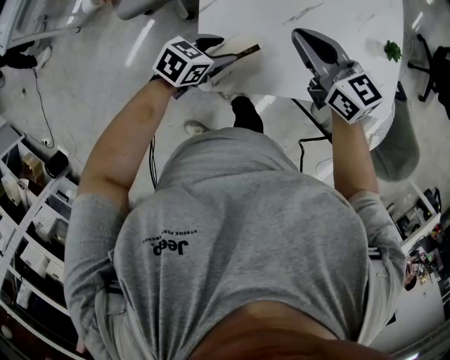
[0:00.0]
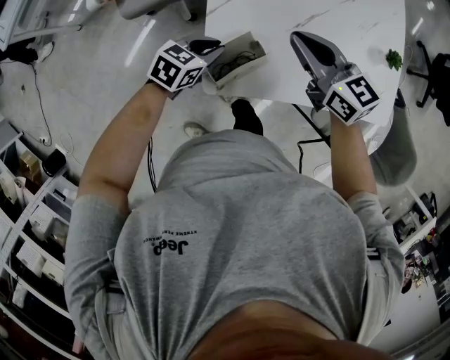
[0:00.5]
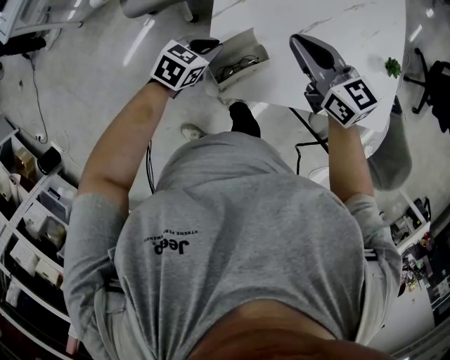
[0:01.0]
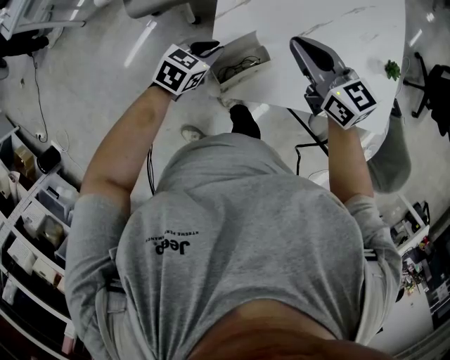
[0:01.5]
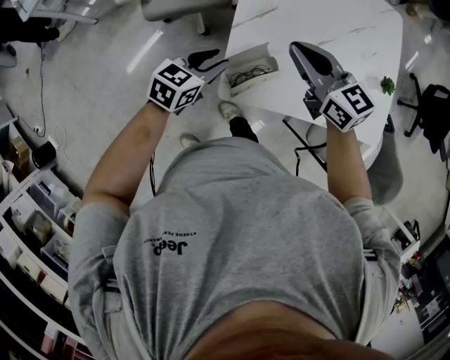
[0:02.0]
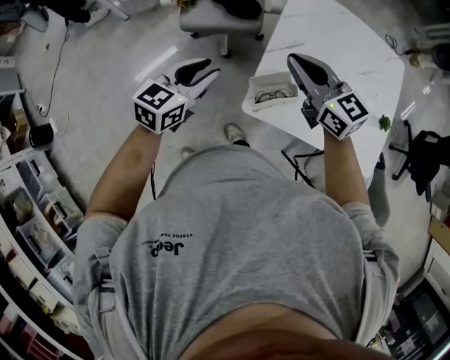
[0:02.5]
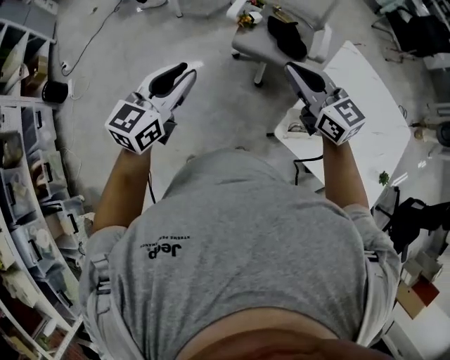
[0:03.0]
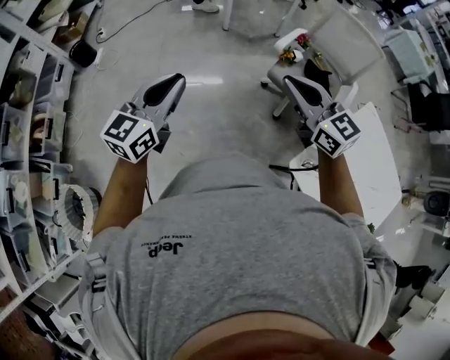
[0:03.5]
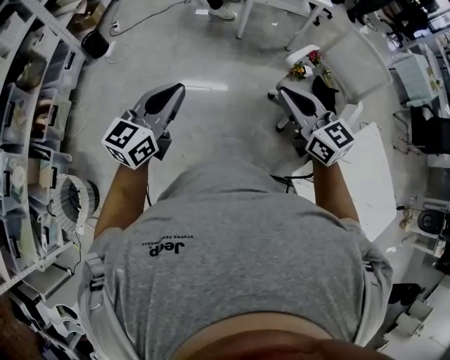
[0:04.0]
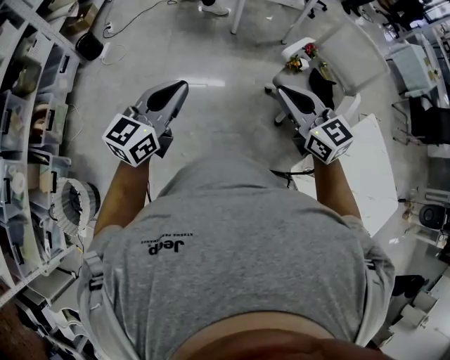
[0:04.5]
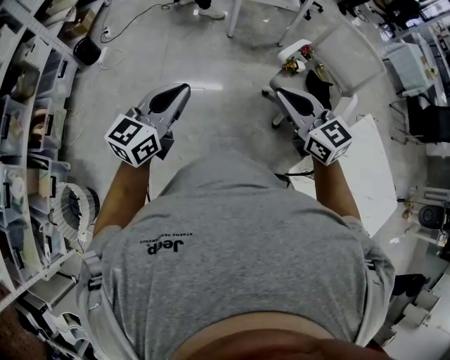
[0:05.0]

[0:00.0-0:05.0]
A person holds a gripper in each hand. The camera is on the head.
0:00.0 to 0:02.5: The right gripper shifts by roughly 20 cm, and turns by about 20 degrees. The left gripper ends up some 30 cm from where it was, and rotates roughly 40 degrees.
0:02.5 to 0:05.0: The left gripper changes place by roughly 40 cm, and rotates some 50 degrees. Meanwhile the right gripper moves roughly 40 cm, and turns by some 40 degrees.

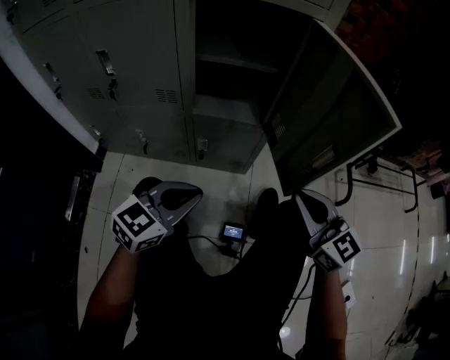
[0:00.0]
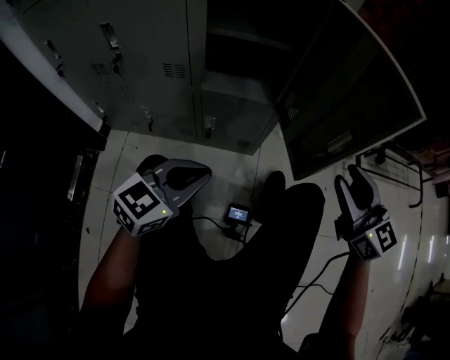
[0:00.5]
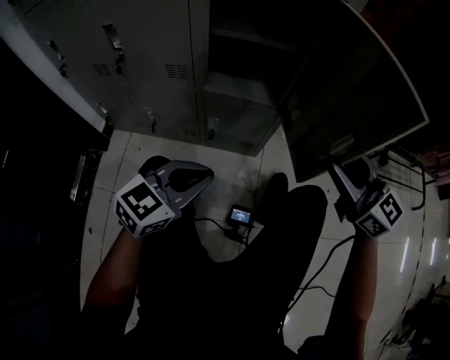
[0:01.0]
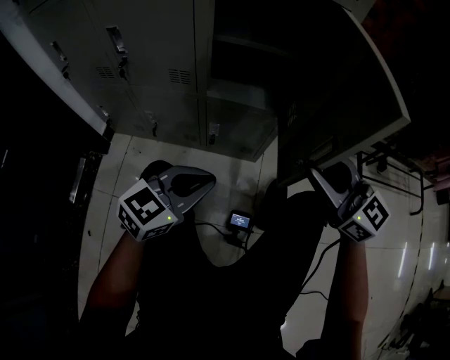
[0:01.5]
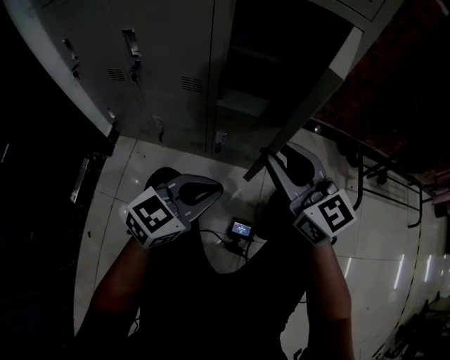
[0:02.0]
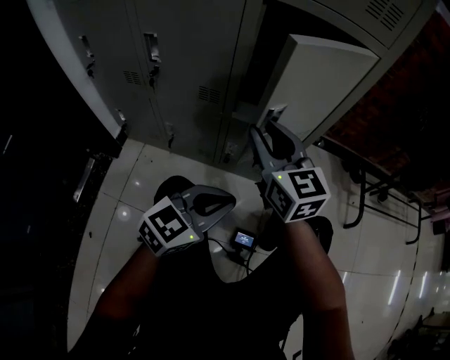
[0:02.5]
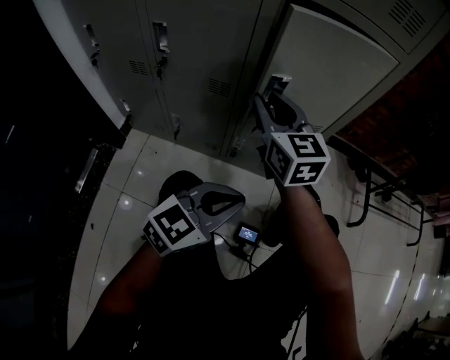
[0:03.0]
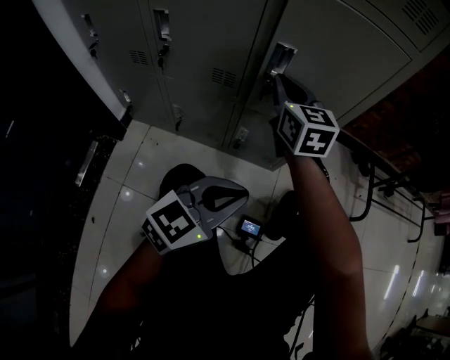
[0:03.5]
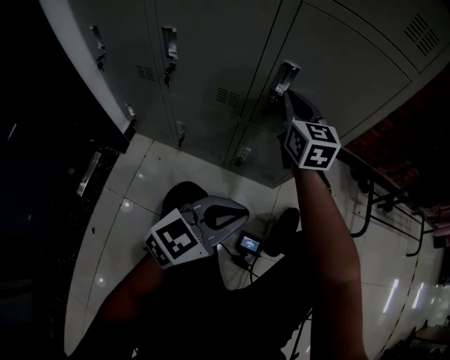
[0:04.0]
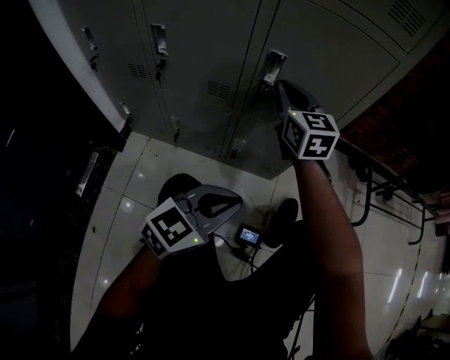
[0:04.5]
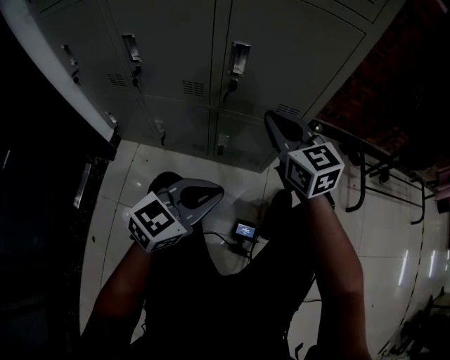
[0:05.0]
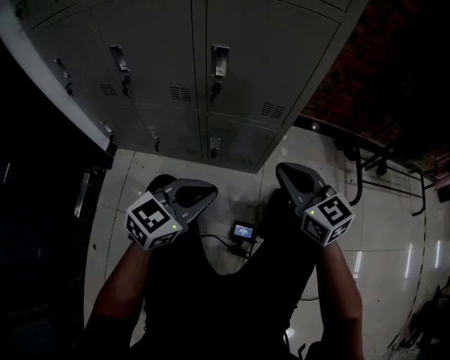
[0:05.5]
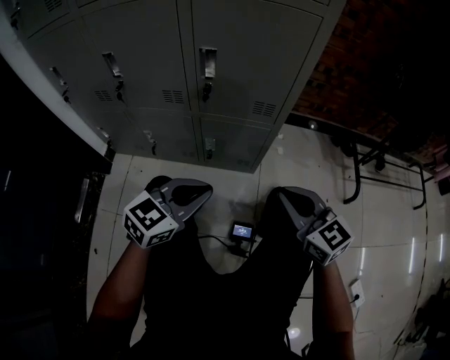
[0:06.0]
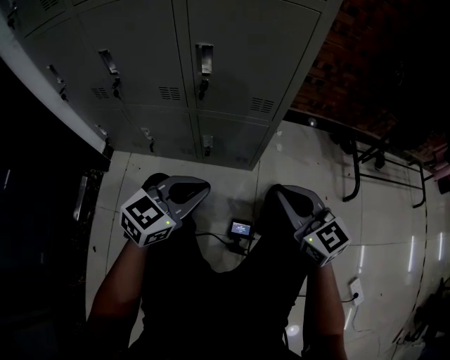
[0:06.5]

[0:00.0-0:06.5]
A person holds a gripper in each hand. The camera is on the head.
0:00.0 to 0:02.0: The right gripper is displaced to the left and forward by roughly 15 cm, and opens.
0:02.0 to 0:04.5: The right gripper shifts roughly 20 cm forward and to the left, and closes up.
0:04.5 to 0:06.5: The right gripper moves backward and to the right, some 30 cm.

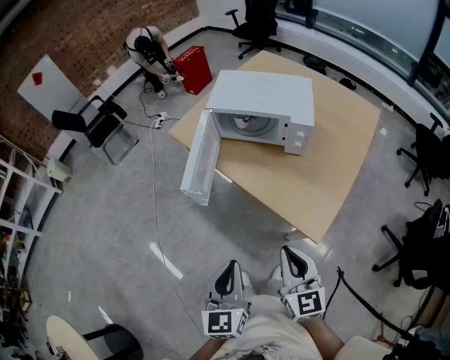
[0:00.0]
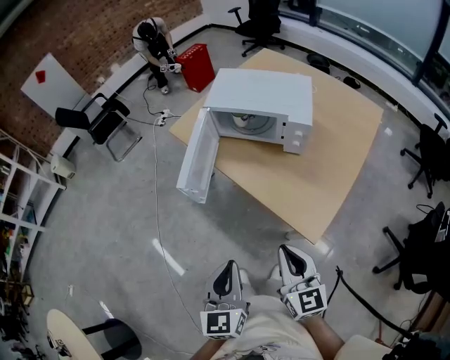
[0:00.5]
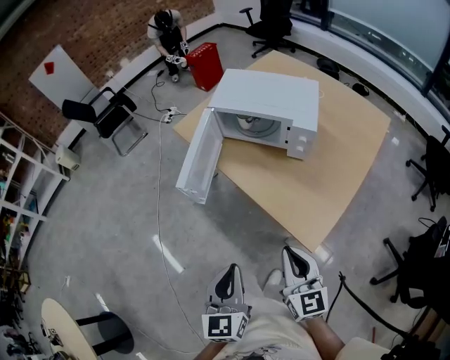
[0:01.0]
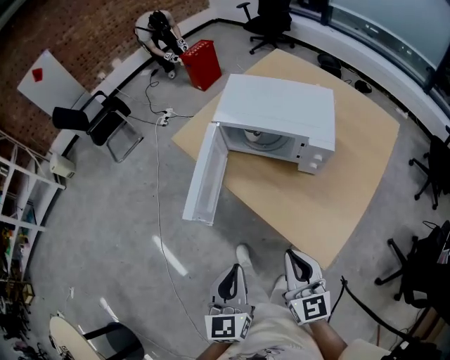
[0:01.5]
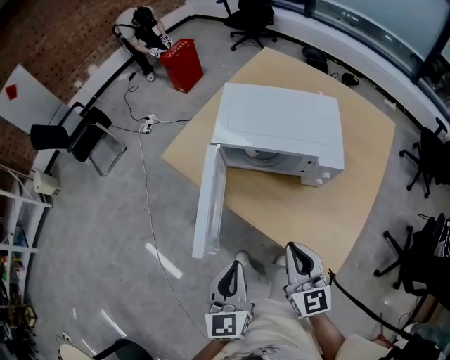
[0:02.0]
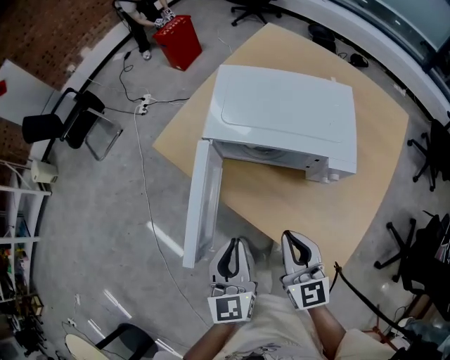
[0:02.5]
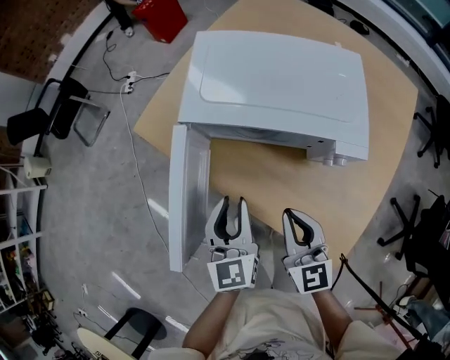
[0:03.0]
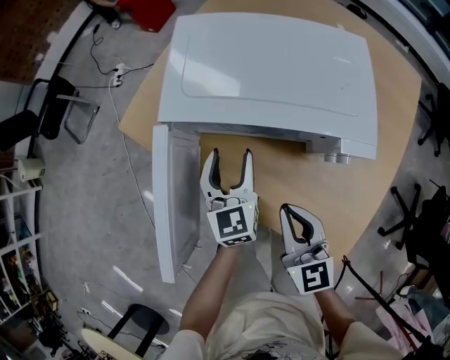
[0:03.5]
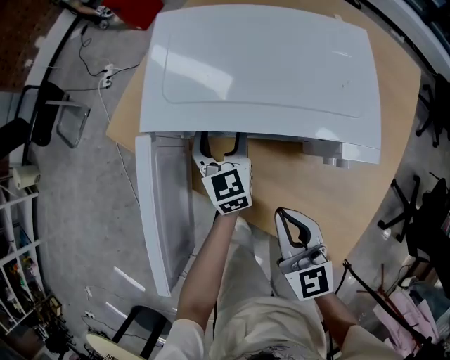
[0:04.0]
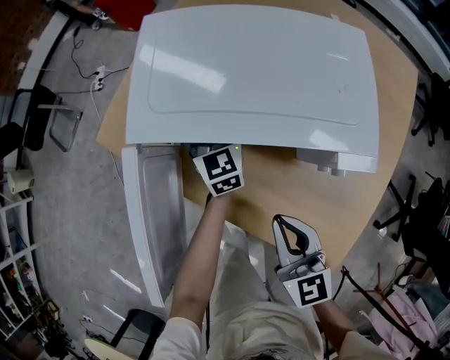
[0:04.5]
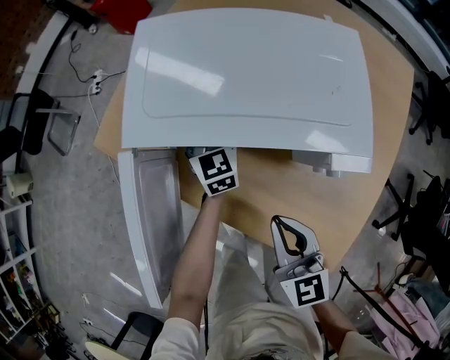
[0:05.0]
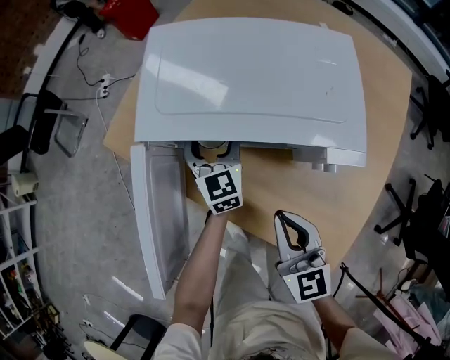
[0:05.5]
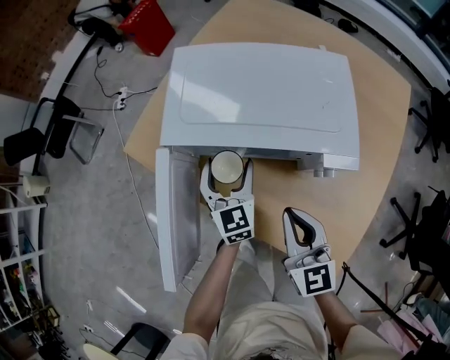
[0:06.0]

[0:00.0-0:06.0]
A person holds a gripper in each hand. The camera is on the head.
0:00.0 to 0:02.0: Both grippers move forward, roughly 25 cm.
0:02.0 to 0:04.0: The left gripper goes roughly 40 cm forward and downward, and opens up, while the right gripper travels forward and downward by some 20 cm.
0:04.0 to 0:06.0: The left gripper is displaced backward by approximately 5 cm, while the right gripper ends up about 5 cm from where it was.

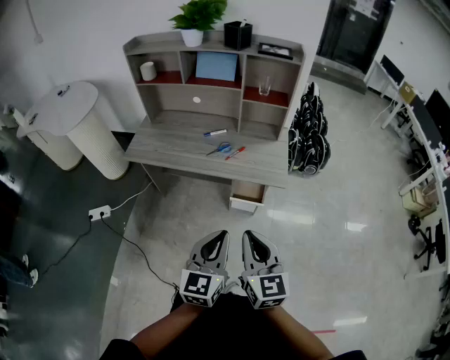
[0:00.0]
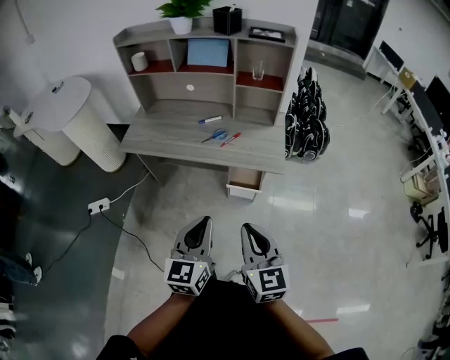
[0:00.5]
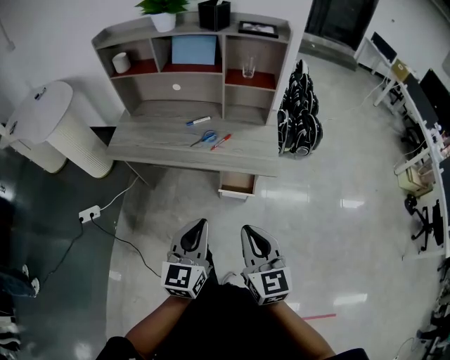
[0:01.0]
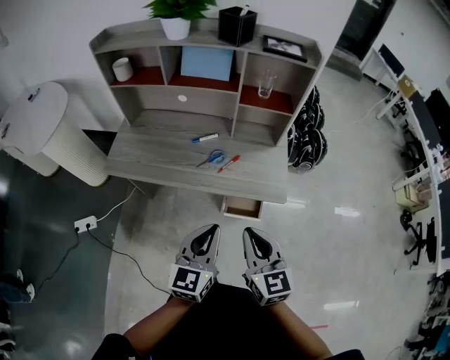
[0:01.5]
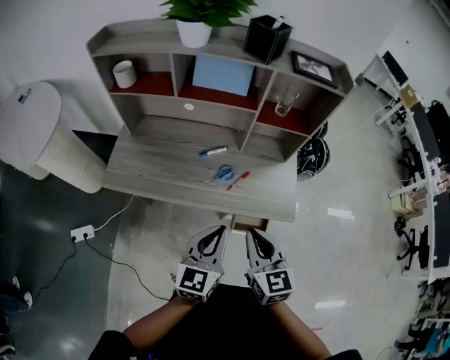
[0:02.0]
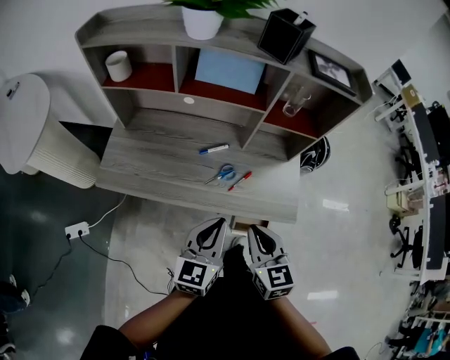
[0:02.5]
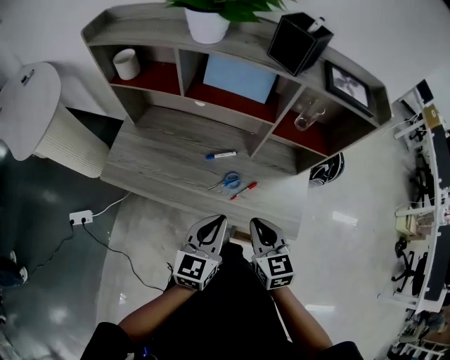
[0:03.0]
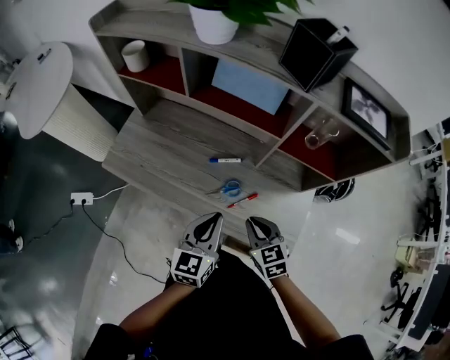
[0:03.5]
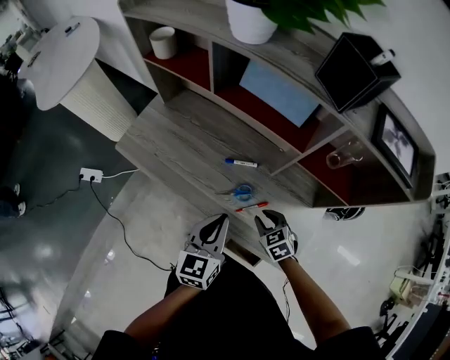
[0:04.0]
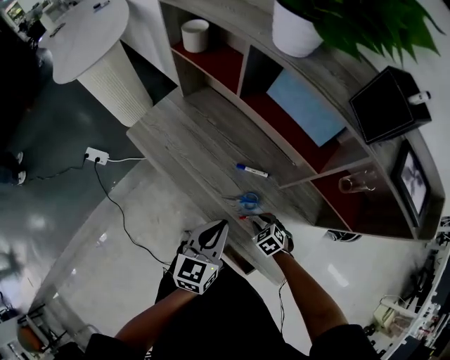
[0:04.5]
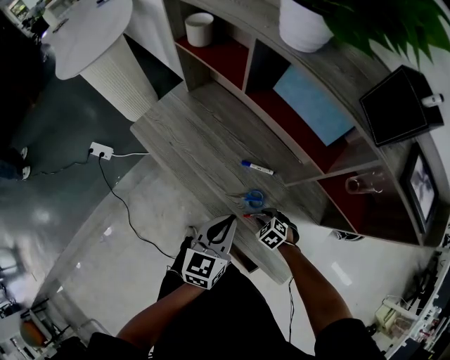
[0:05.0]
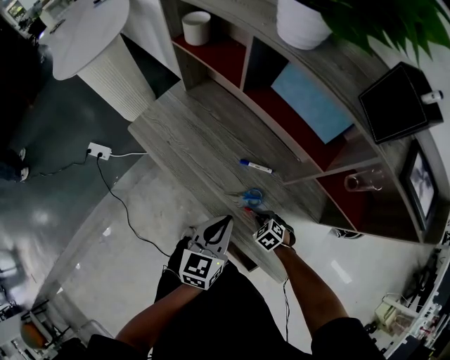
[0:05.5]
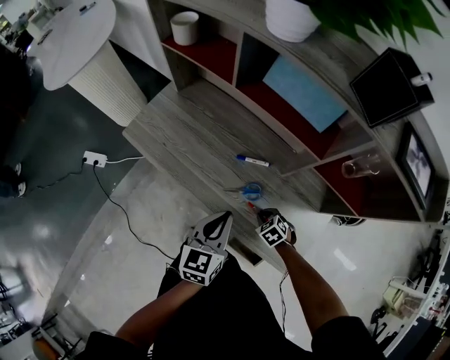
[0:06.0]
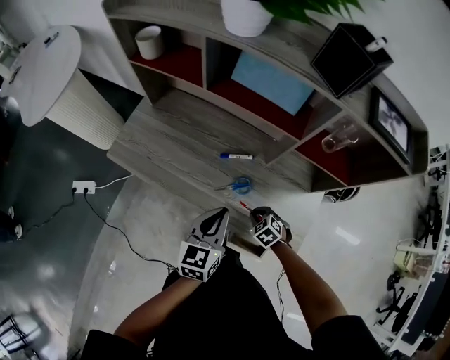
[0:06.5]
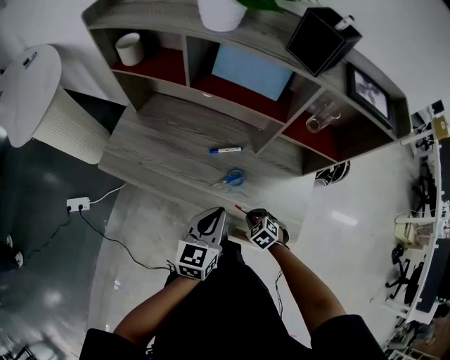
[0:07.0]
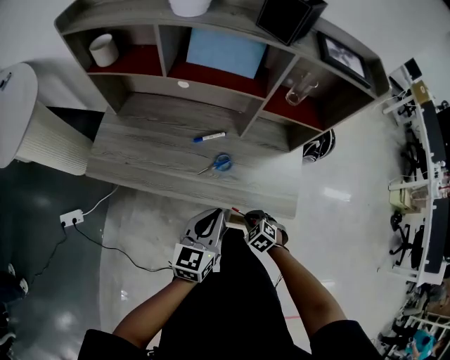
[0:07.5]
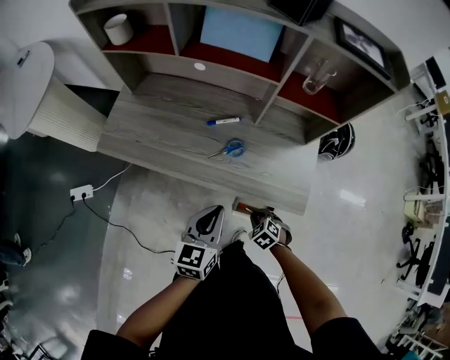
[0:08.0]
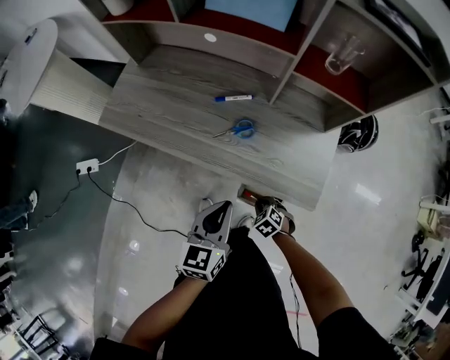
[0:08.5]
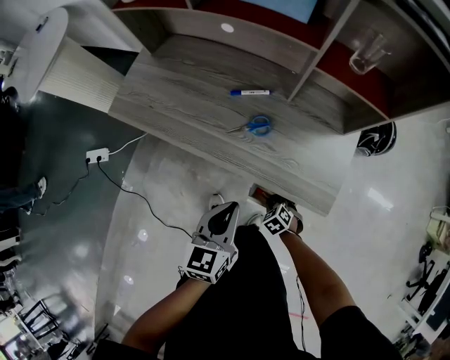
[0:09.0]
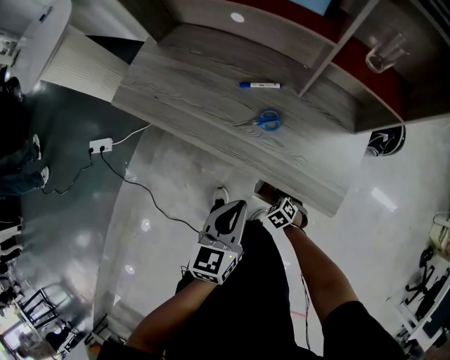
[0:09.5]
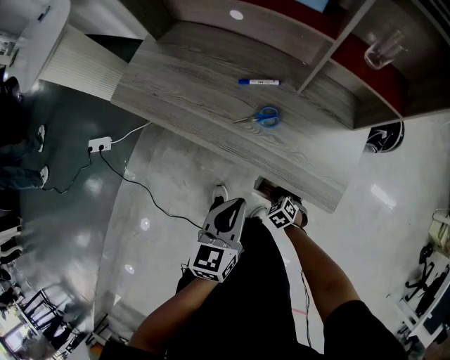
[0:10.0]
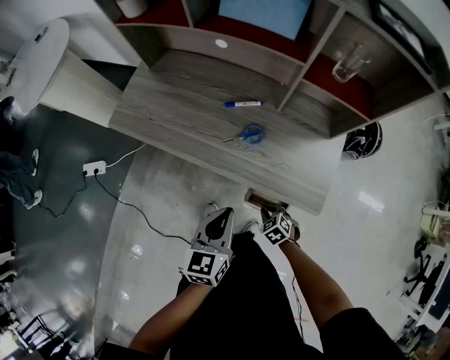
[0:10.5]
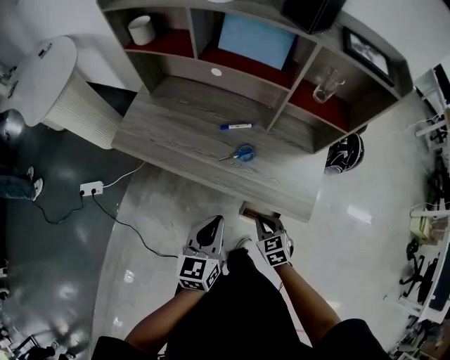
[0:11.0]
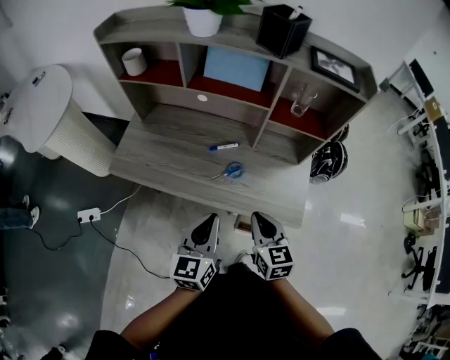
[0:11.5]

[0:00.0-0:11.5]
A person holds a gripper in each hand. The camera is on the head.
0:00.0 to 0:02.0: Both grippers move forward, approximately 30 cm.
0:02.0 to 0:04.0: The right gripper moves downward, roughly 25 cm, and tips its fingers downward by approximately 30 degrees. Meanwhile the left gripper moves some 20 cm, and rotates approximately 30 degrees.
0:04.0 to 0:06.0: The right gripper is displaced downward by about 10 cm, and rotates roughly 20 degrees.
0:06.0 to 0:07.5: The right gripper shifts by approximately 15 cm; the left gripper shifts by approximately 10 cm, and changes its angle by about 30 degrees.
0:07.5 to 0:09.5: The right gripper is displaced downward by roughly 20 cm, while the left gripper travels downward and backward by approximately 10 cm, and turns by roughly 20 degrees.
0:09.5 to 0:11.5: The left gripper travels upward and to the left by some 15 cm, while the right gripper is displaced upward by roughly 40 cm, and angles its fingers upward, by some 50 degrees.
